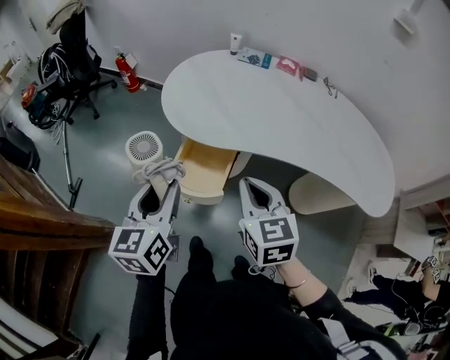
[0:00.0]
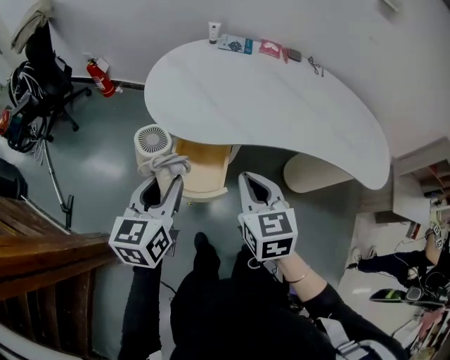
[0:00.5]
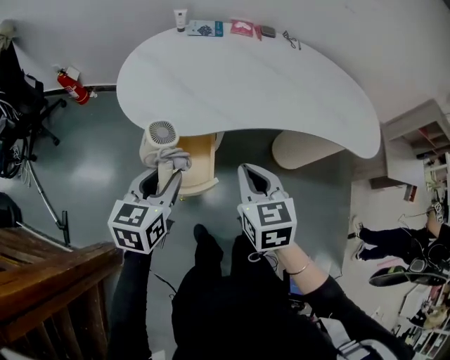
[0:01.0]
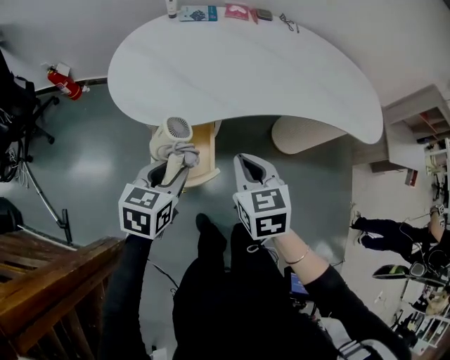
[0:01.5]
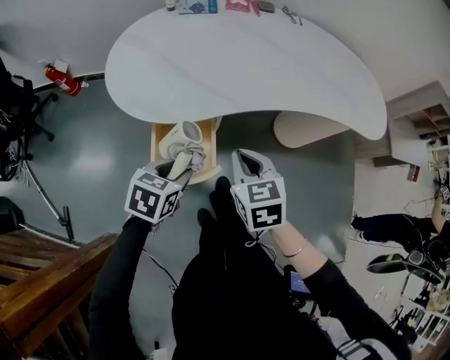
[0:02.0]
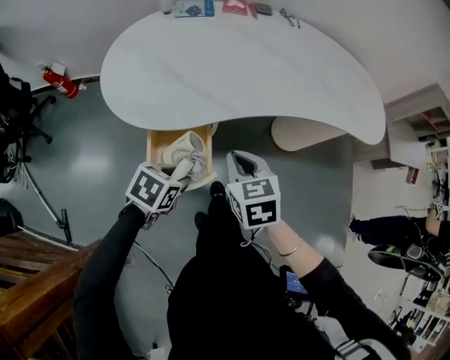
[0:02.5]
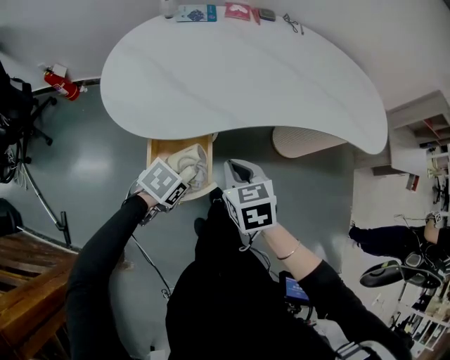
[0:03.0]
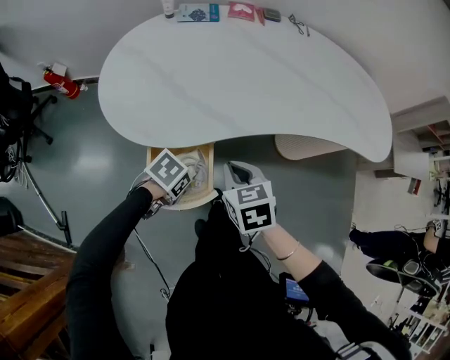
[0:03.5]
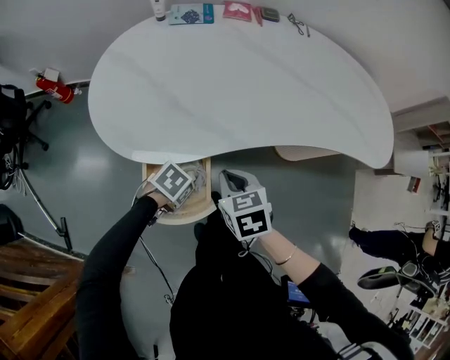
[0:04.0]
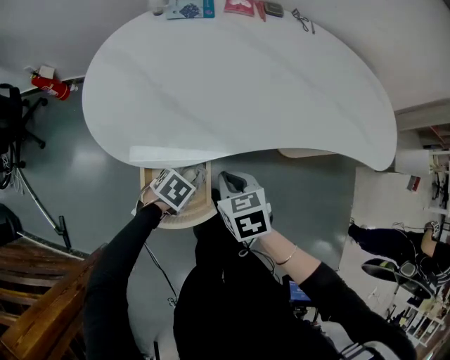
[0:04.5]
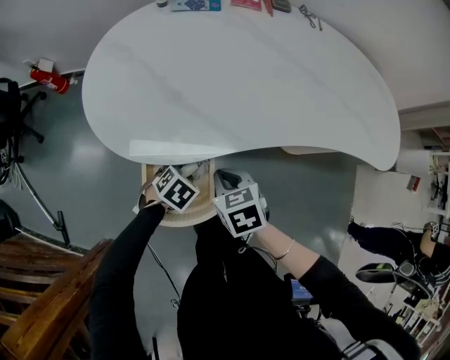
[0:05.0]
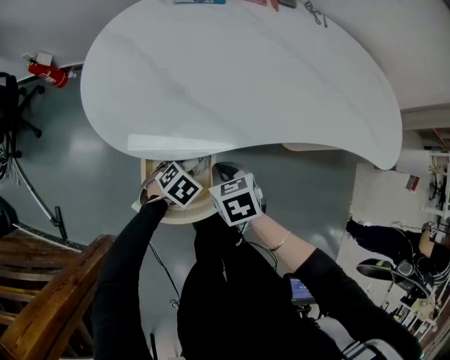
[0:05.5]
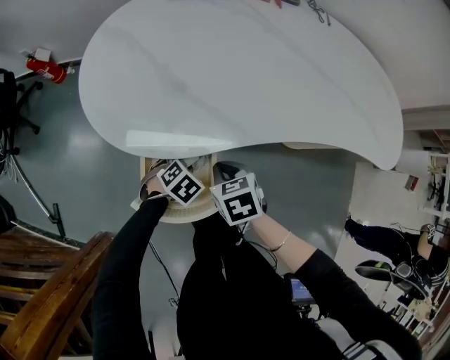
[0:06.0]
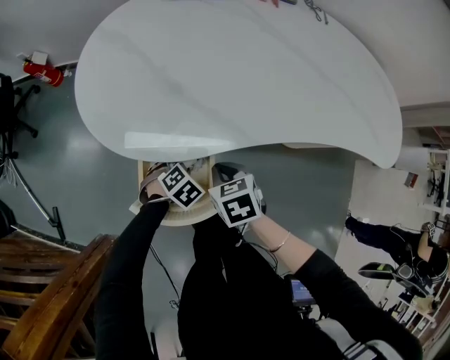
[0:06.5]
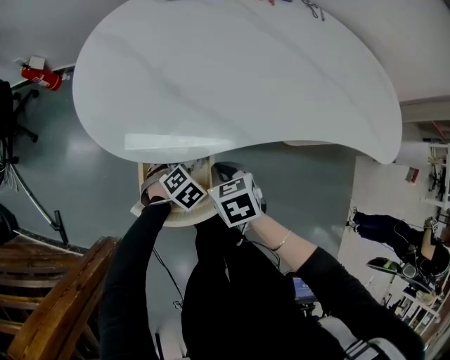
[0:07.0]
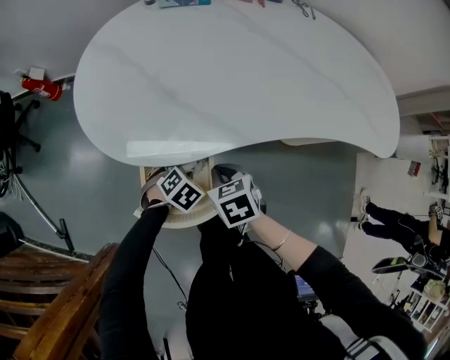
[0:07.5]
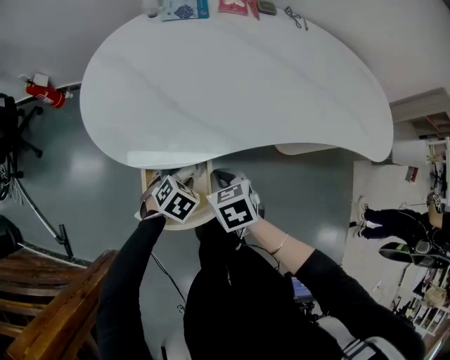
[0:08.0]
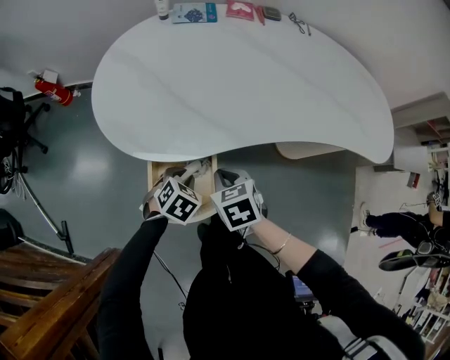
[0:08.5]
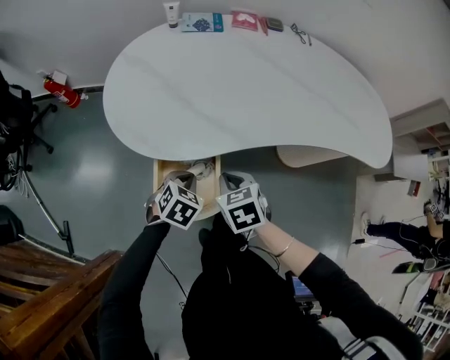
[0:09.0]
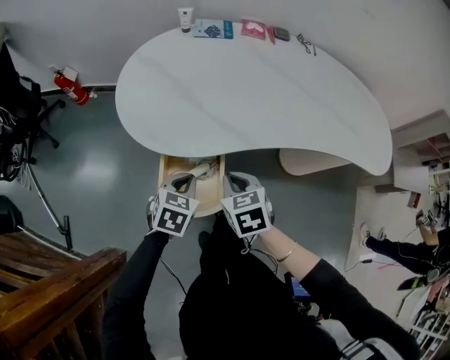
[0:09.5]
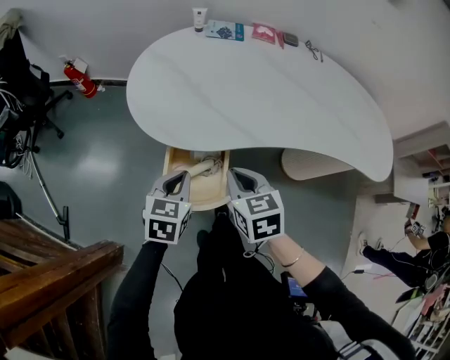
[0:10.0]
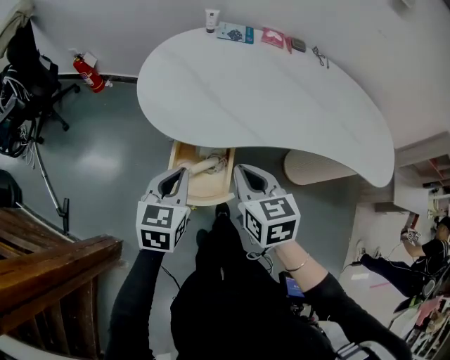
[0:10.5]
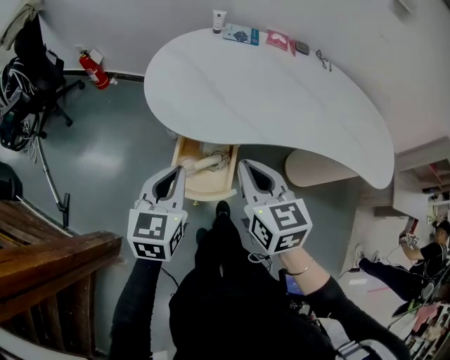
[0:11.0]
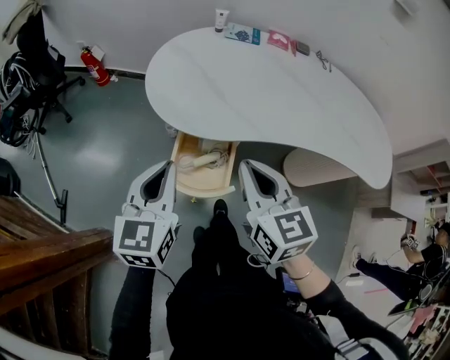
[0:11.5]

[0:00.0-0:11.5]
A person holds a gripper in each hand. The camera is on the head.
0:00.0 to 0:02.0: The right gripper moves downward, roughly 10 cm, and changes its angle by roughly 20 degrees, while the left gripper heads downward, covering approximately 20 cm, and points its fingers roughly 40 degrees further downward.
0:02.0 to 0:04.0: The left gripper travels downward and forward by about 15 cm, and rotates roughly 40 degrees. The right gripper heads downward and forward, covering approximately 10 cm.
0:04.0 to 0:06.0: Both grippers travel together downward, approximately 5 cm. The left gripper swivels roughly 20 degrees.
0:06.0 to 0:07.5: The grippers make only small movements.
0:07.5 to 0:09.5: The right gripper heads upward, covering some 10 cm. Meanwhile the left gripper goes about 15 cm upward, rotates about 40 degrees, and closes its fingers.
0:09.5 to 0:11.5: The left gripper goes roughly 20 cm upward and to the left, and tilts its fingers approximately 30 degrees upward; the right gripper moves upward, about 15 cm, and swivels roughly 30 degrees.

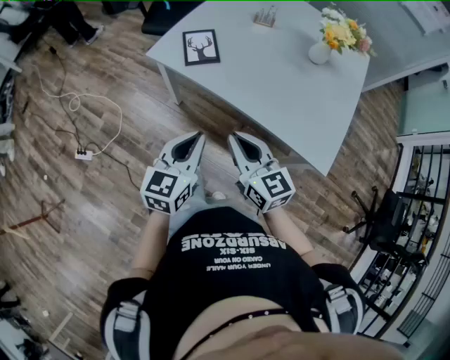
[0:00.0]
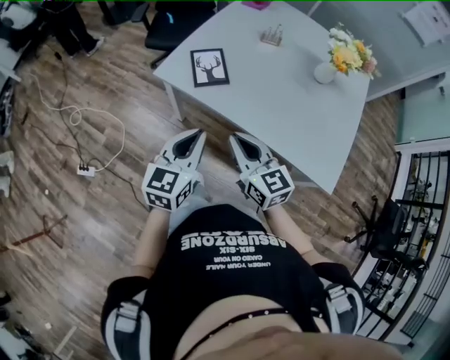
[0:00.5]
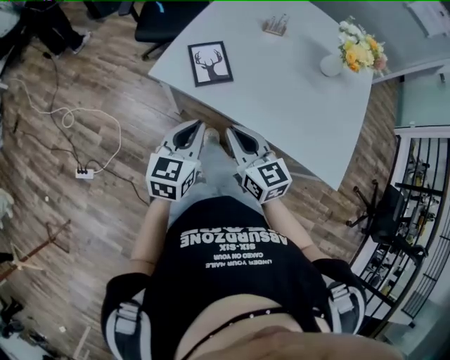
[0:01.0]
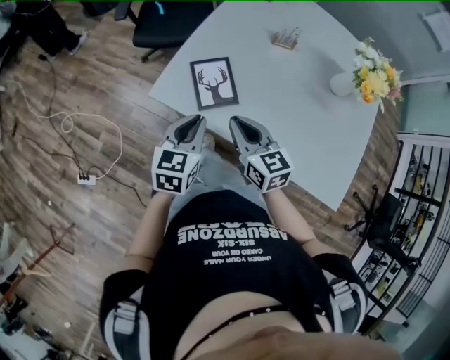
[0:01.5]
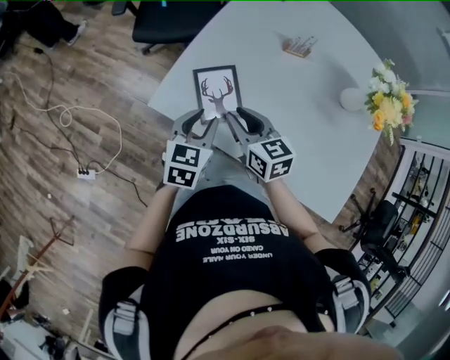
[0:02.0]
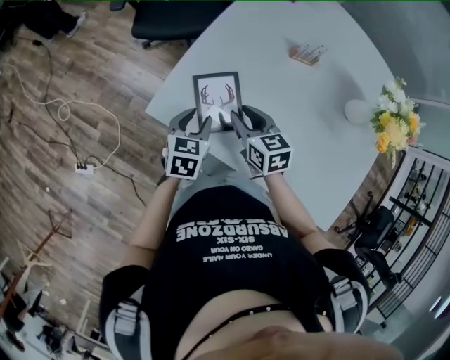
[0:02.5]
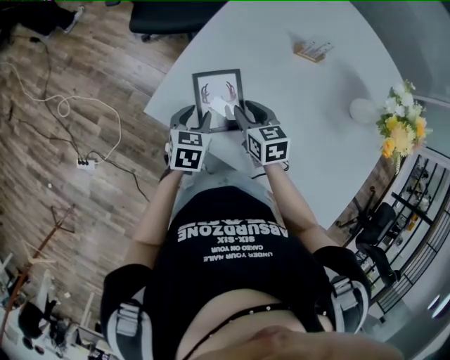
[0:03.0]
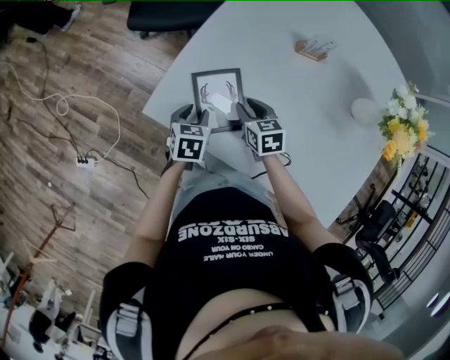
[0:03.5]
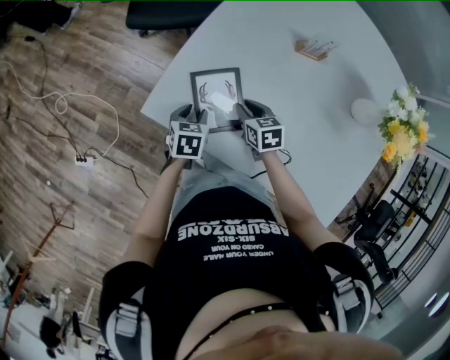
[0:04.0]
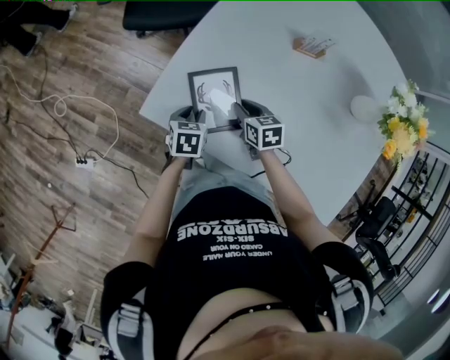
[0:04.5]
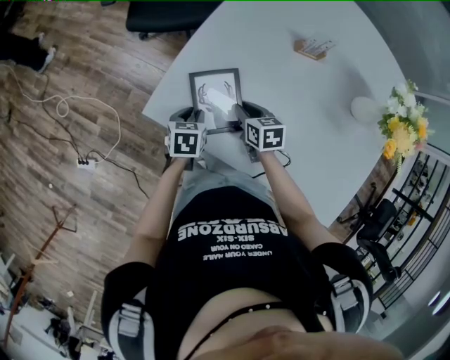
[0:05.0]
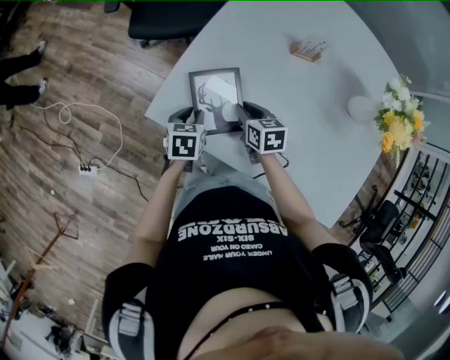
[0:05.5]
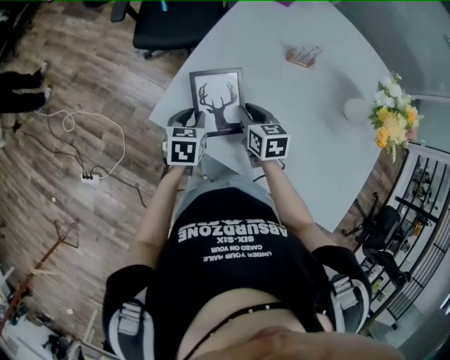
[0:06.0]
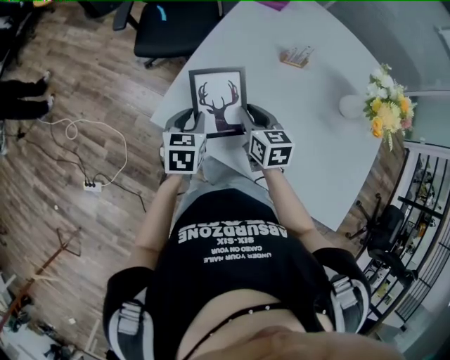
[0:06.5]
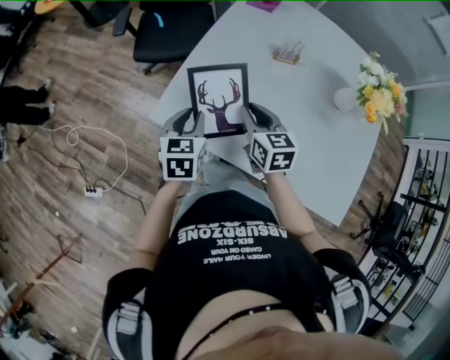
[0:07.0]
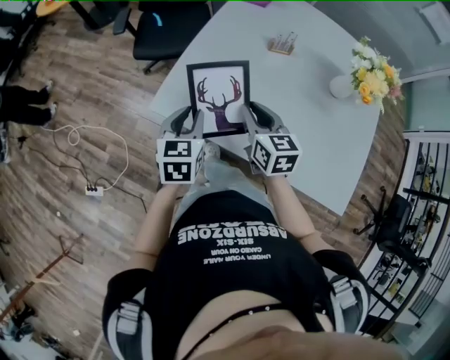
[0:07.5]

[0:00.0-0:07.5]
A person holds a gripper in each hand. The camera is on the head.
0:00.0 to 0:02.0: Both grippers are carried forward, some 40 cm. The left gripper opens up, while the right gripper opens up.
0:02.0 to 0:04.0: The right gripper is displaced downward and forward by some 20 cm, and rotates some 20 degrees. Meanwhile the left gripper travels downward by roughly 15 cm, and changes its angle by approximately 30 degrees.
0:04.0 to 0:05.5: The grippers make only small movements.
0:05.5 to 0:07.5: The two grippers go about 20 cm upward and backward. The left gripper swivels roughly 30 degrees; the right gripper swivels approximately 30 degrees.

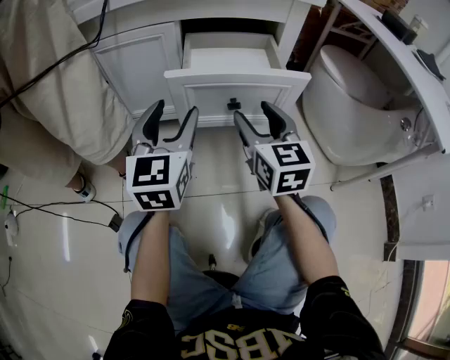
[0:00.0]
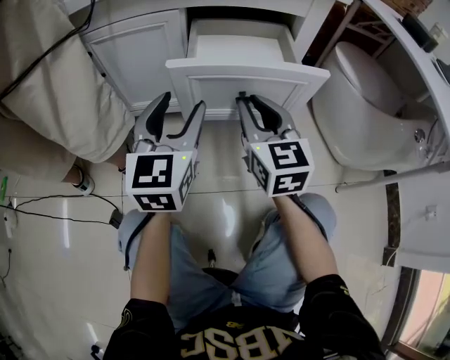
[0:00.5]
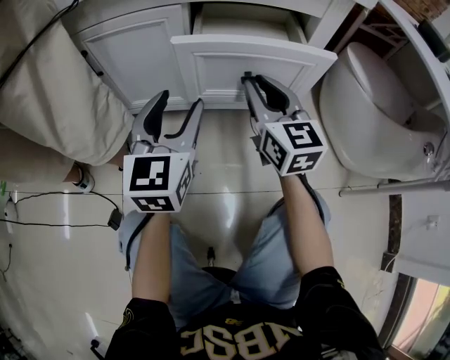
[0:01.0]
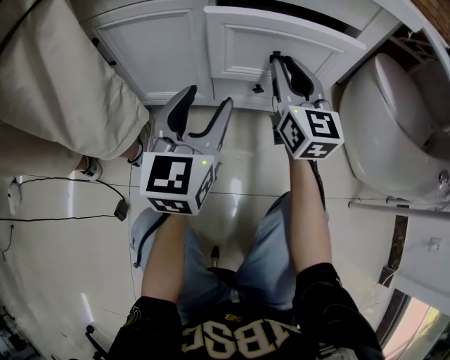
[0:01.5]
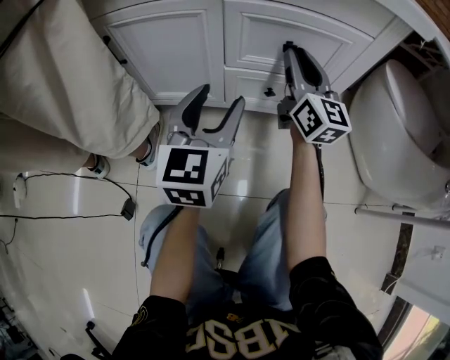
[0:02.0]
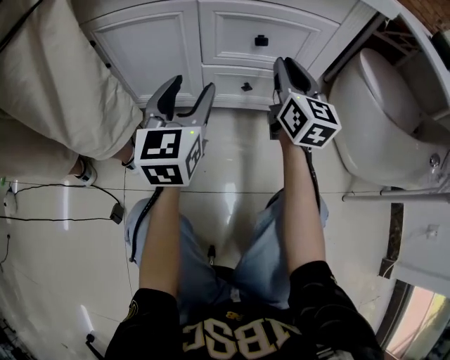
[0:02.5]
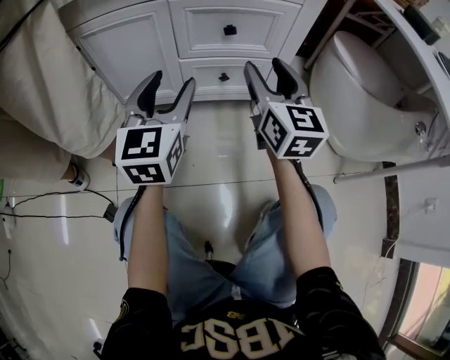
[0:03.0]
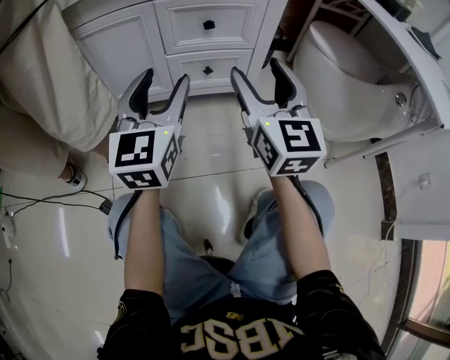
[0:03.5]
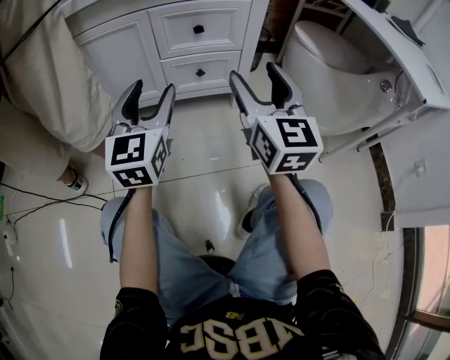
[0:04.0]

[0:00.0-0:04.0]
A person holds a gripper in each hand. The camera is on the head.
0:00.0 to 0:02.0: The right gripper is displaced forward by roughly 25 cm, rotates approximately 30 degrees, and closes up; the left gripper shifts some 10 cm forward.
0:02.0 to 0:04.0: The right gripper moves backward, about 30 cm, and opens its fingers. The left gripper travels backward and upward by some 15 cm.

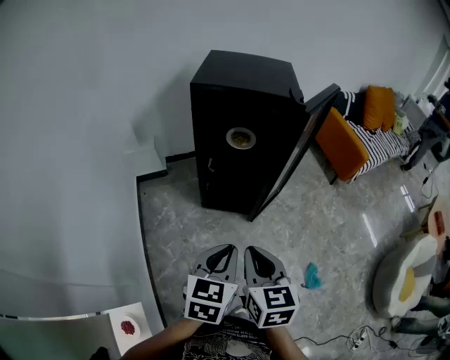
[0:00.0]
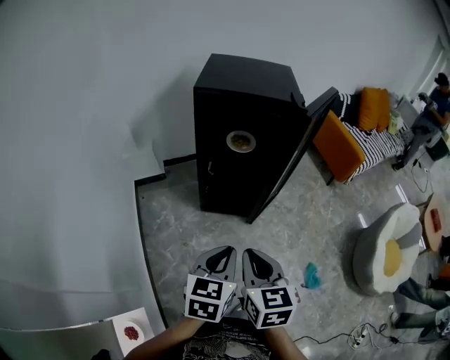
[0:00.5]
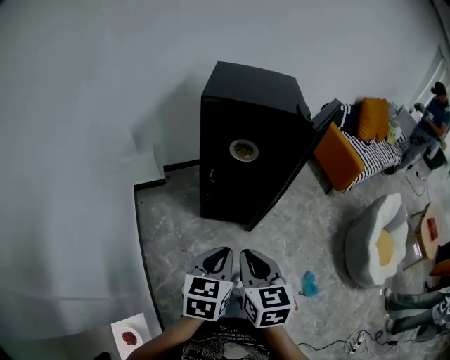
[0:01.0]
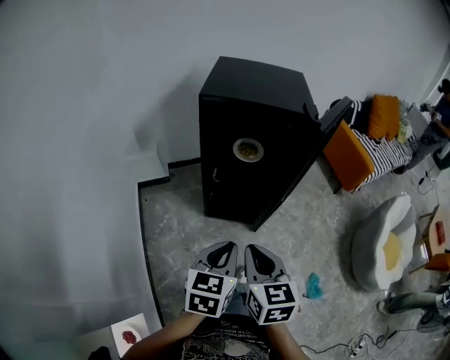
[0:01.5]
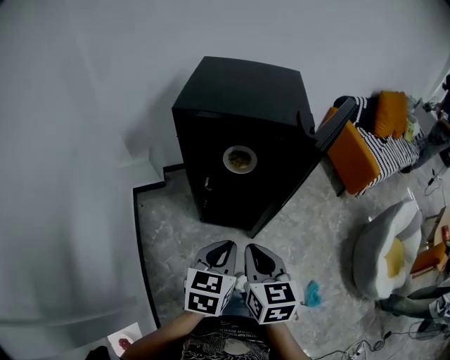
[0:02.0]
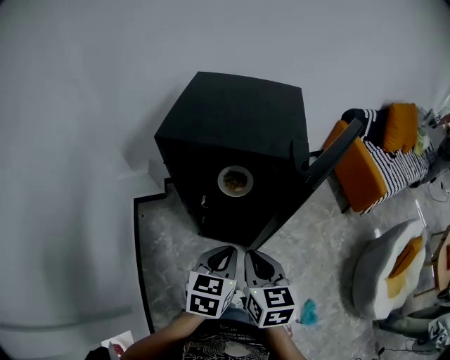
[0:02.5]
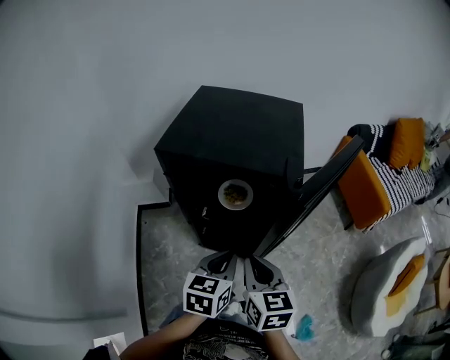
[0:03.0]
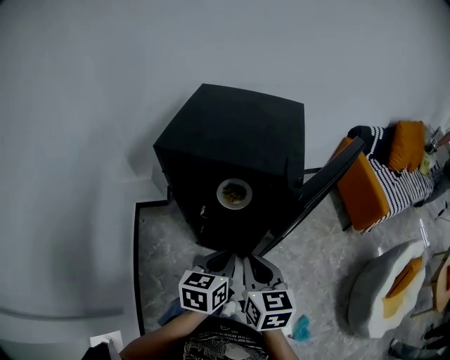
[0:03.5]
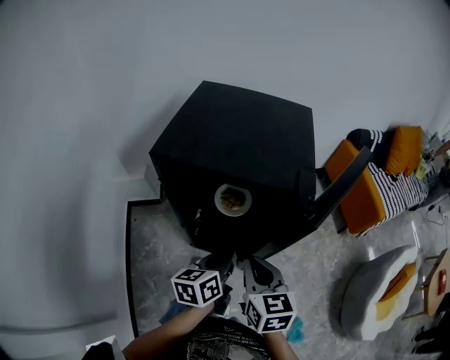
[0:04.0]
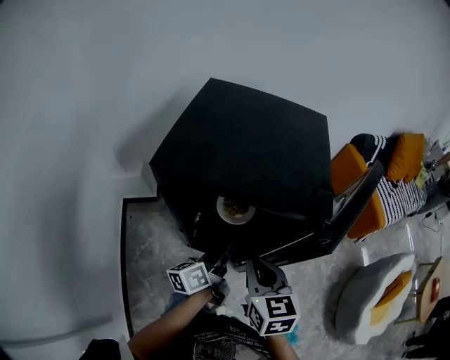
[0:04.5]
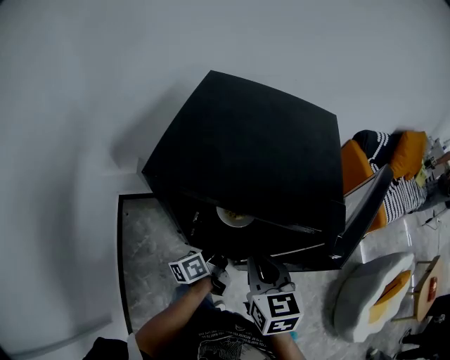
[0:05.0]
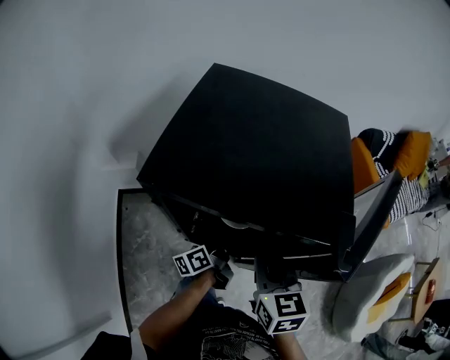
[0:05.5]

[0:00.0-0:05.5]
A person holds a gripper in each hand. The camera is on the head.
0:00.0 to 0:02.0: Both grippers travel together forward, roughly 20 cm.
0:02.0 to 0:03.5: Both grippers travel together forward and to the right, roughly 15 cm.
0:03.5 to 0:05.5: The left gripper moves forward and downward, some 25 cm, and rolls counterclockwise, seen from behind, by some 50 degrees. The right gripper shifts roughly 15 cm forward.
